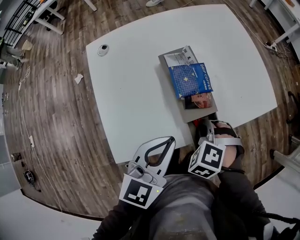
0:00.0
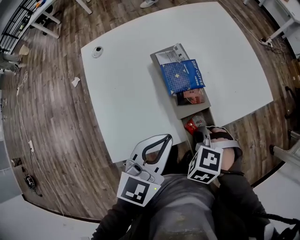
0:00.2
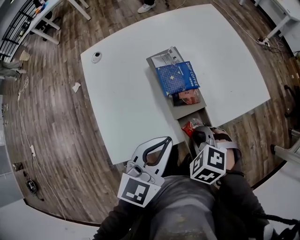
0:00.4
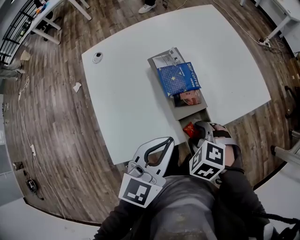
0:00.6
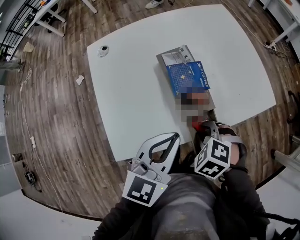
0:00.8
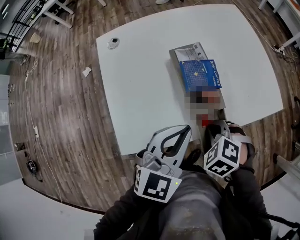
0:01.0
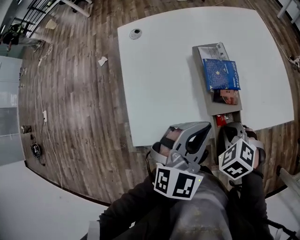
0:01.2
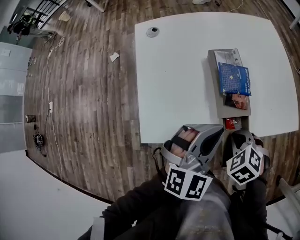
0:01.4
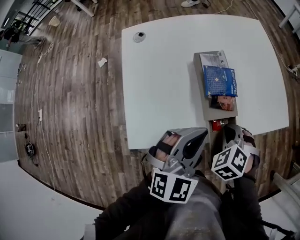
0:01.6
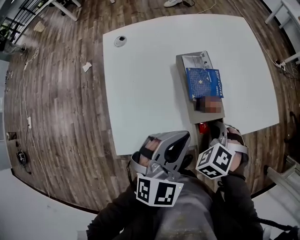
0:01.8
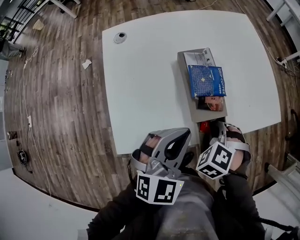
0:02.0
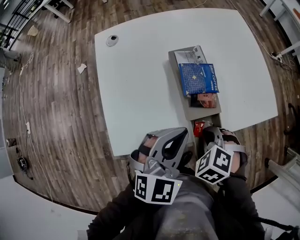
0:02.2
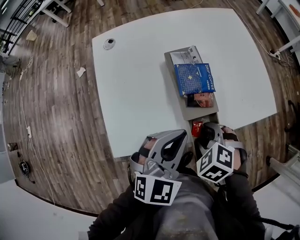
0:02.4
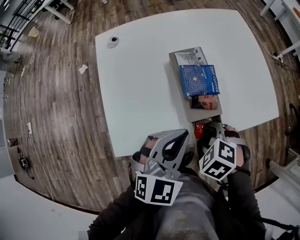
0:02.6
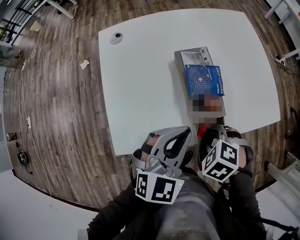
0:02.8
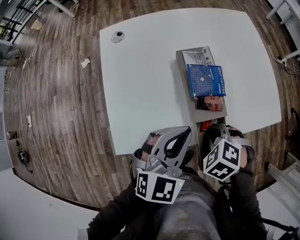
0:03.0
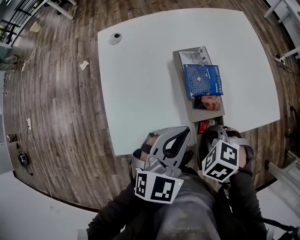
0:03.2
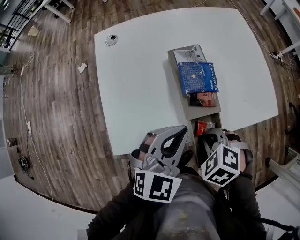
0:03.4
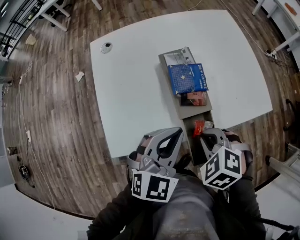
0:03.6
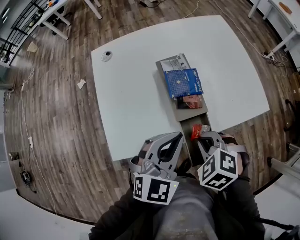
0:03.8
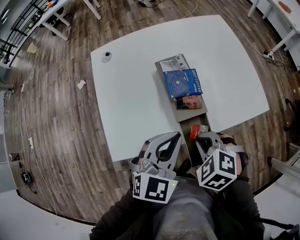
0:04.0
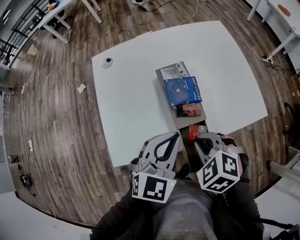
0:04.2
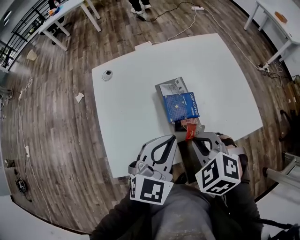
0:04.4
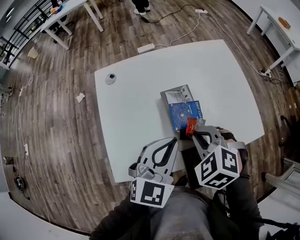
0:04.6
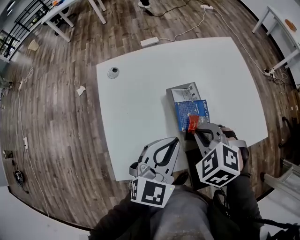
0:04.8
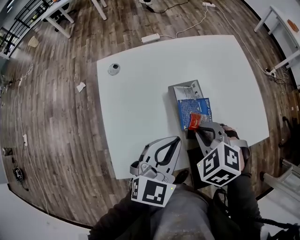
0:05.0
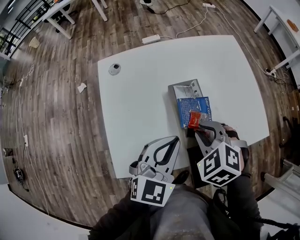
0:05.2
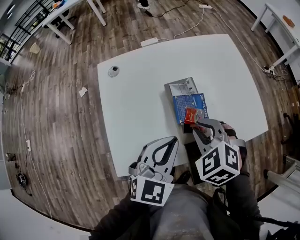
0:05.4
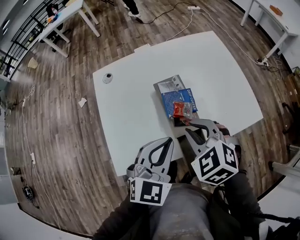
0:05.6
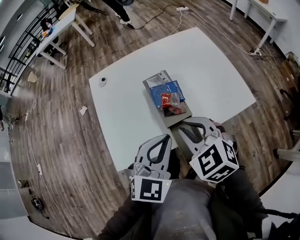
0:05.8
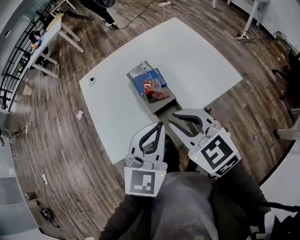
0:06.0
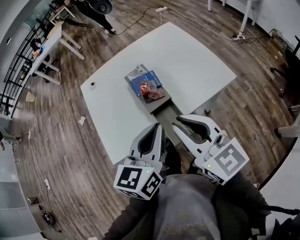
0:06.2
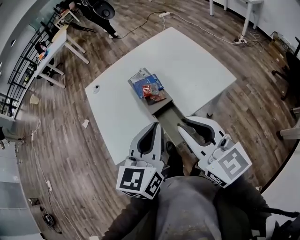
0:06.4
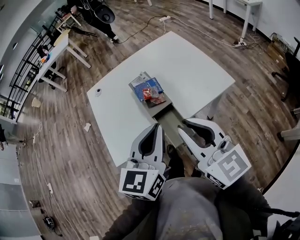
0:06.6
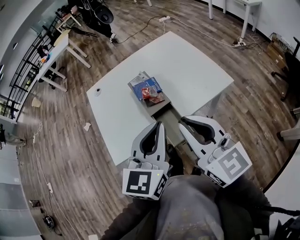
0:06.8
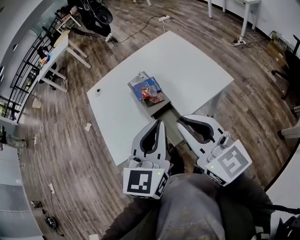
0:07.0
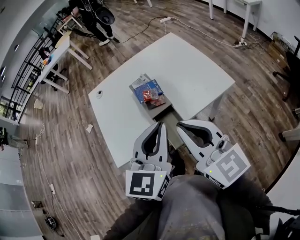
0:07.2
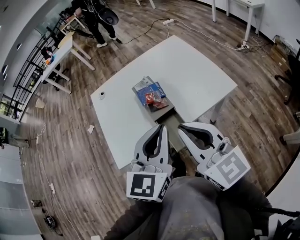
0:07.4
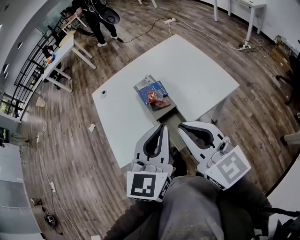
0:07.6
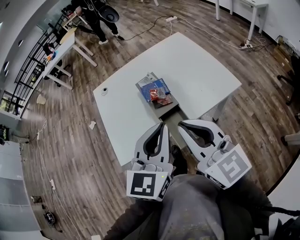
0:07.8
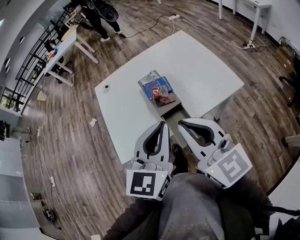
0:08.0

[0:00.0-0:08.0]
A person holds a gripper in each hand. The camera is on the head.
0:00.0 to 0:01.6: The right gripper opens and closes again. The left gripper turns by approximately 30 degrees.
0:01.6 to 0:03.2: The right gripper opens and closes again.
0:03.2 to 0:04.8: The right gripper shifts by roughly 15 cm. The left gripper shifts by approximately 5 cm.
0:04.8 to 0:06.4: The two grippers go some 25 cm backward, upward and to the right. The right gripper tilts its fingers roughly 60 degrees upward; the left gripper changes its angle by approximately 20 degrees.
0:06.4 to 0:08.0: The grippers make only small movements.

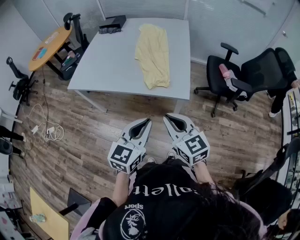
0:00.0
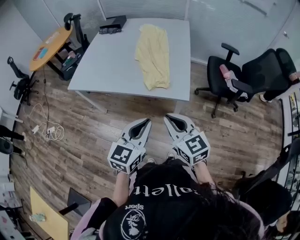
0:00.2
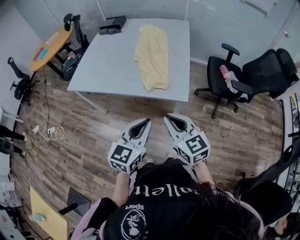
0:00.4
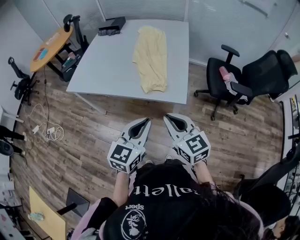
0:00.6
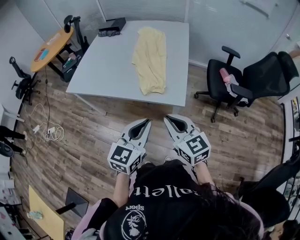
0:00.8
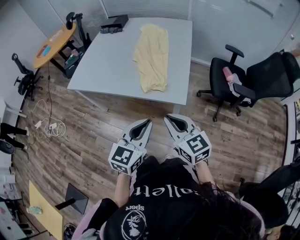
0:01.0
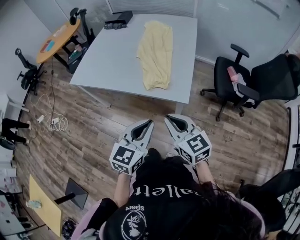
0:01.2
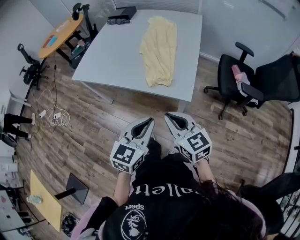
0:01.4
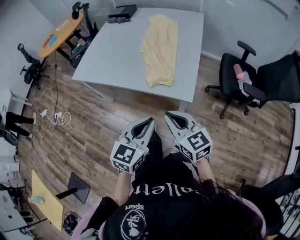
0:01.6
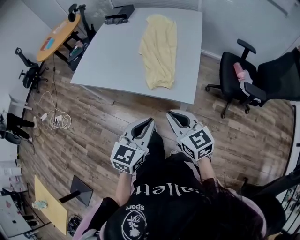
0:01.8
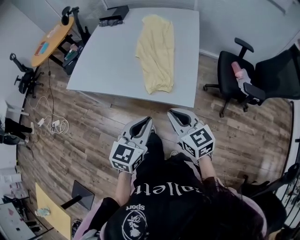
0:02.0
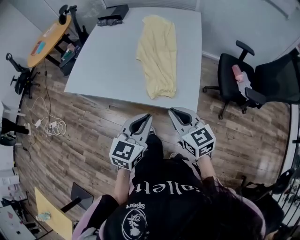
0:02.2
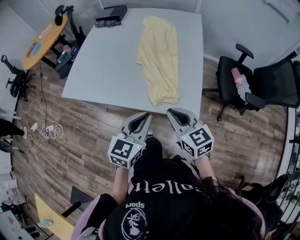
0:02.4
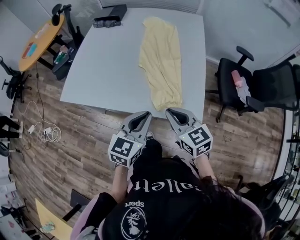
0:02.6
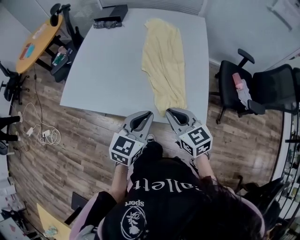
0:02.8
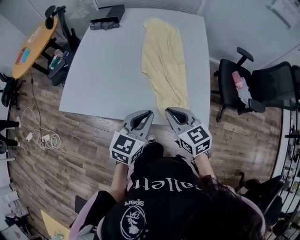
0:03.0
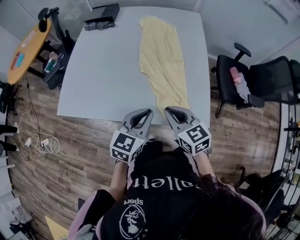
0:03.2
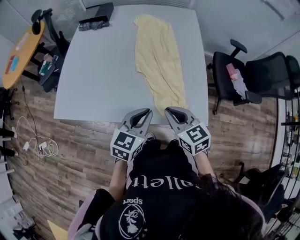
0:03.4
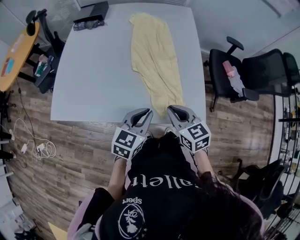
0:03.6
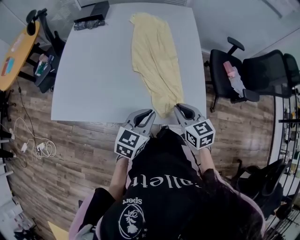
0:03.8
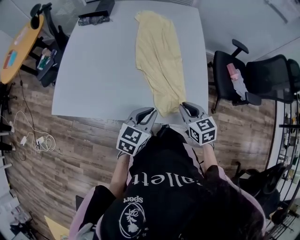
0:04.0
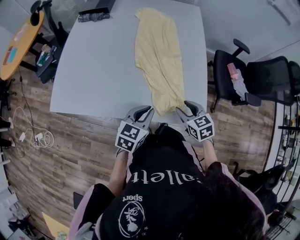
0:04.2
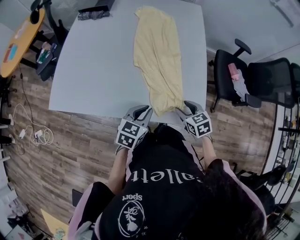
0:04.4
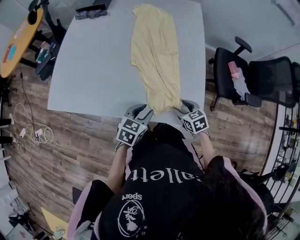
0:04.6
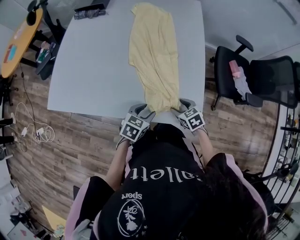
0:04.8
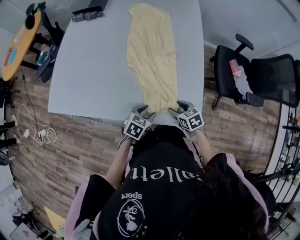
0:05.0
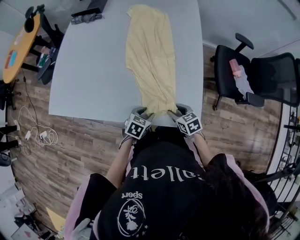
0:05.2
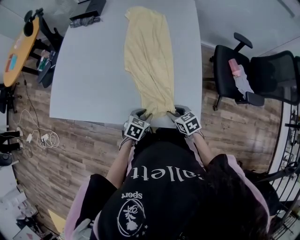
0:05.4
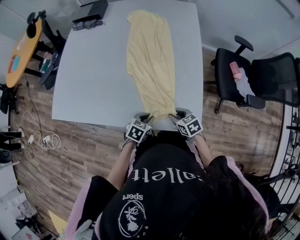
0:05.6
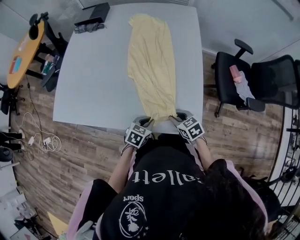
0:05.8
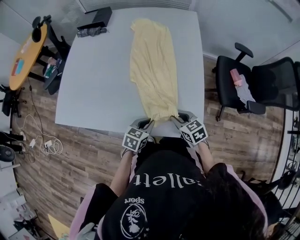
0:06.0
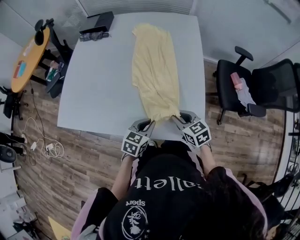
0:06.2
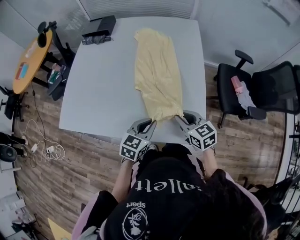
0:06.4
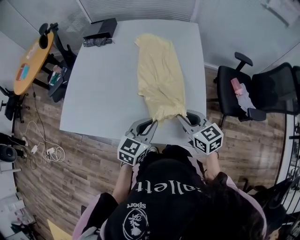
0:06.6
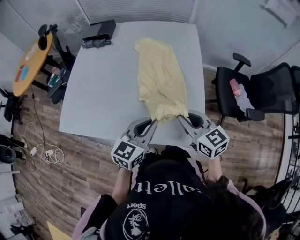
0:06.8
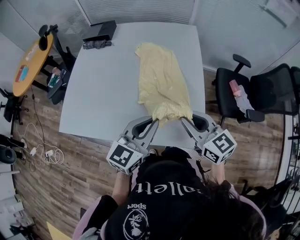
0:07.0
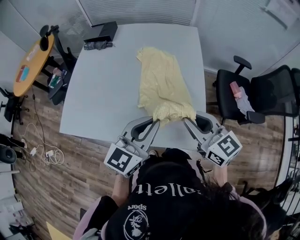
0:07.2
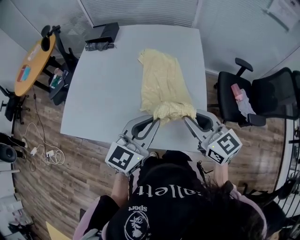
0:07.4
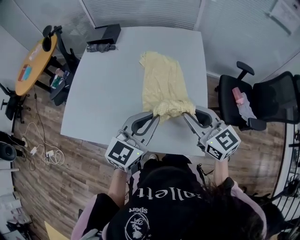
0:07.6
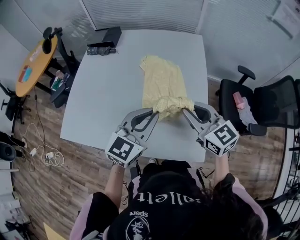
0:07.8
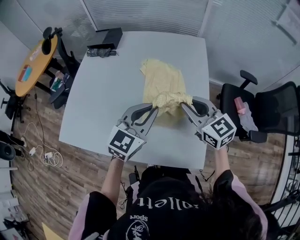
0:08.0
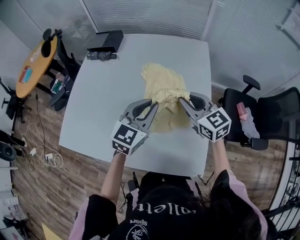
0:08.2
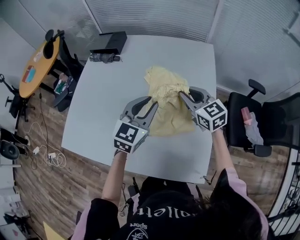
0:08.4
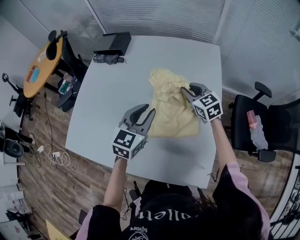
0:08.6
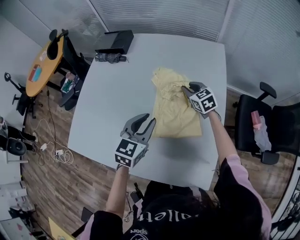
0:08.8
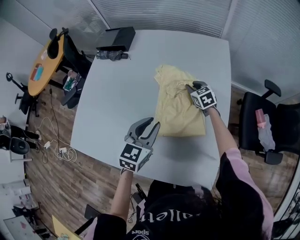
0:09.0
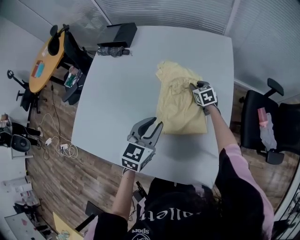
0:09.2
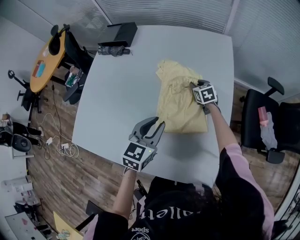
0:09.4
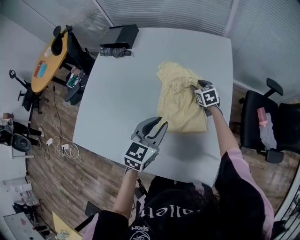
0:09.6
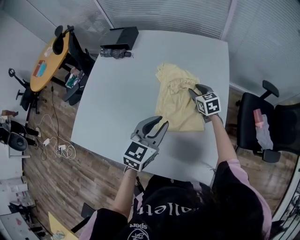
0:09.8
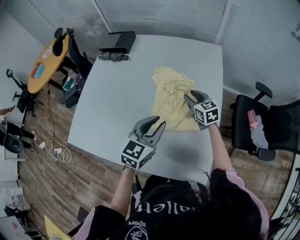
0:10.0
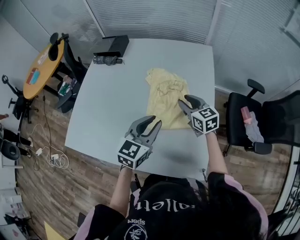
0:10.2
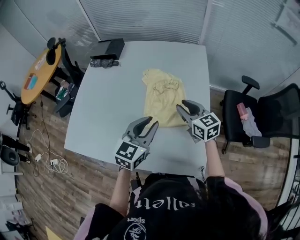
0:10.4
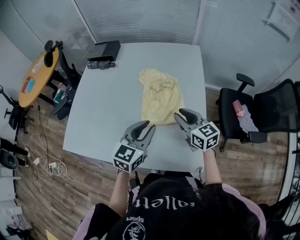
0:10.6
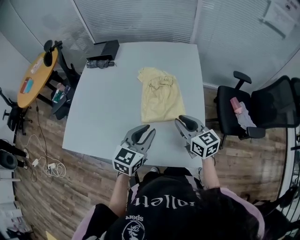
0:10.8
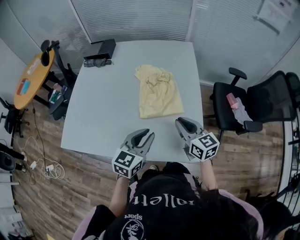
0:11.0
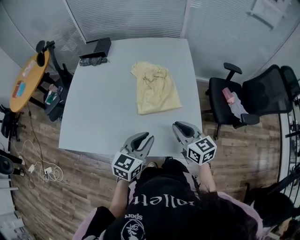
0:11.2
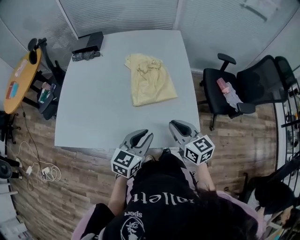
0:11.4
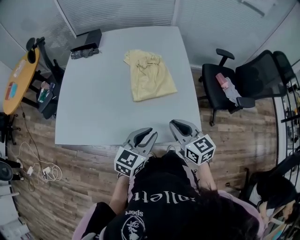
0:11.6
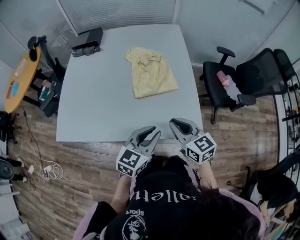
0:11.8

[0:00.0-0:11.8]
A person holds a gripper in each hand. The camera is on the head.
0:00.0 to 0:01.4: The left gripper shifts about 5 cm to the right, while the right gripper moves roughly 5 cm.
0:01.4 to 0:03.0: The grippers both shift forward and to the left by about 25 cm.
0:03.0 to 0:04.4: The right gripper goes approximately 20 cm downward and to the right, swivels about 20 degrees, and opens. The left gripper goes some 10 cm downward.
0:04.4 to 0:06.0: The left gripper travels downward by about 5 cm, and opens, then closes once more, while the right gripper goes downward and returns, some 10 cm each way, and closes.
0:06.0 to 0:07.4: The two grippers go roughly 25 cm upward. The left gripper tilts its fingers roughly 30 degrees upward; the right gripper swivels about 30 degrees.
0:07.4 to 0:08.8: The right gripper is displaced forward and downward by some 40 cm, and rotates roughly 20 degrees. Meanwhile the left gripper travels forward and downward by approximately 25 cm, and changes its angle by some 20 degrees.
0:08.8 to 0:10.4: The right gripper moves backward and upward, roughly 20 cm, and swivels about 20 degrees. The left gripper travels backward by some 10 cm.
0:10.4 to 0:11.8: The two grippers go roughly 25 cm backward. The right gripper closes.

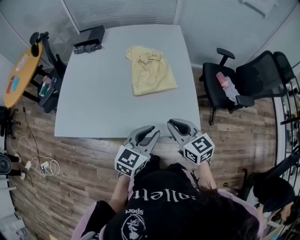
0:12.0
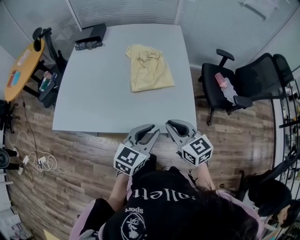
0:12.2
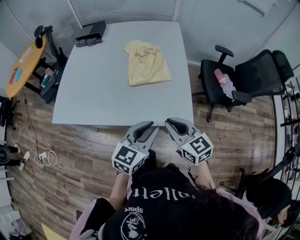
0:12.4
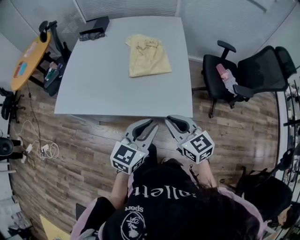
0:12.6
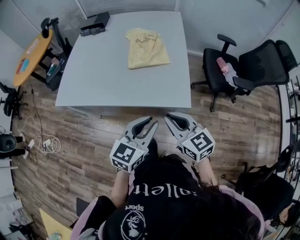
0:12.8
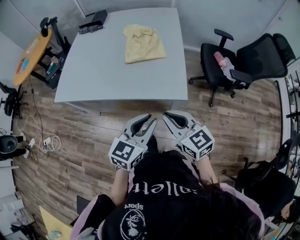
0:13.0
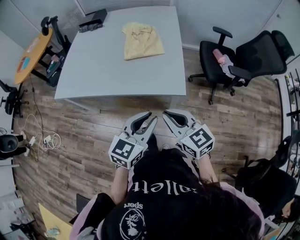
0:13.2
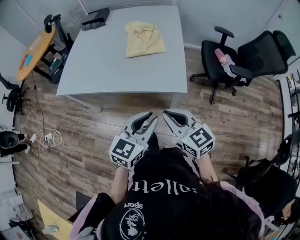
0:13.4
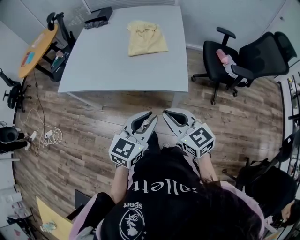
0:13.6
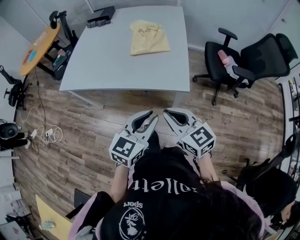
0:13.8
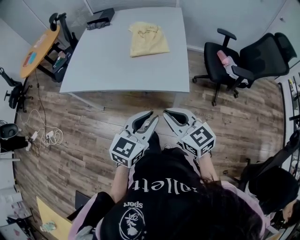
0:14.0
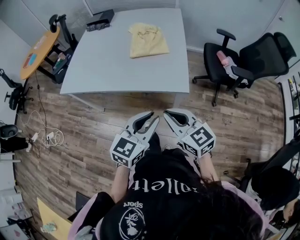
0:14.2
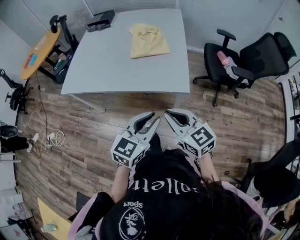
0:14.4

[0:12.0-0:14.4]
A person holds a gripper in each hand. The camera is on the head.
0:12.0 to 0:13.2: The left gripper goes about 20 cm backward and to the right. Meanwhile the right gripper shifts approximately 20 cm backward.
0:13.2 to 0:14.4: The grippers make only small movements.

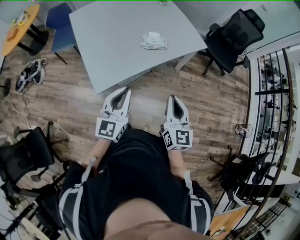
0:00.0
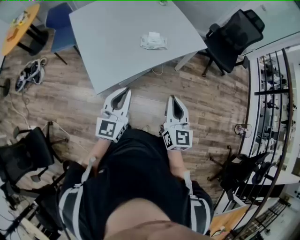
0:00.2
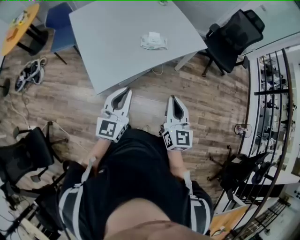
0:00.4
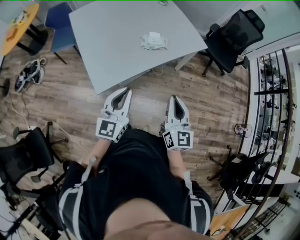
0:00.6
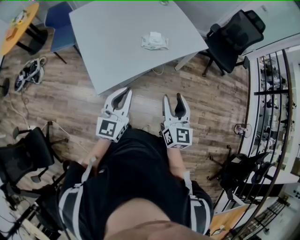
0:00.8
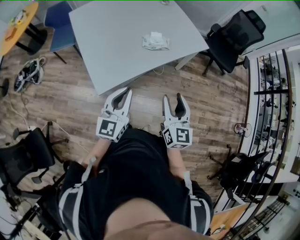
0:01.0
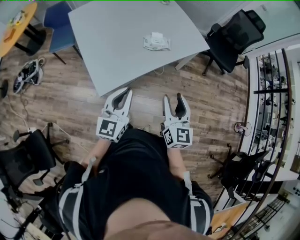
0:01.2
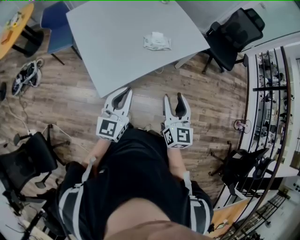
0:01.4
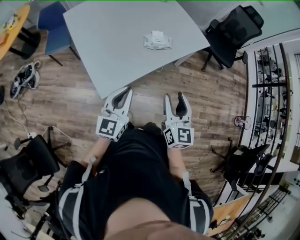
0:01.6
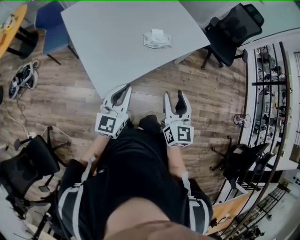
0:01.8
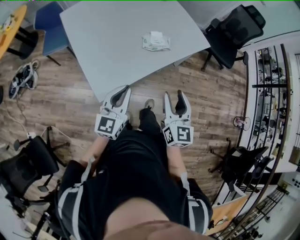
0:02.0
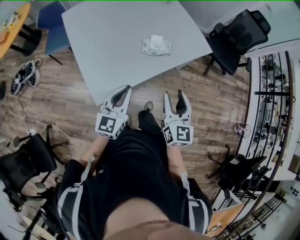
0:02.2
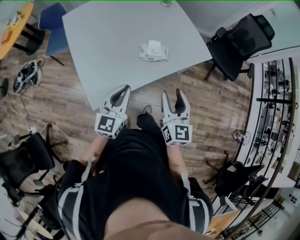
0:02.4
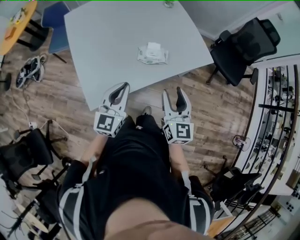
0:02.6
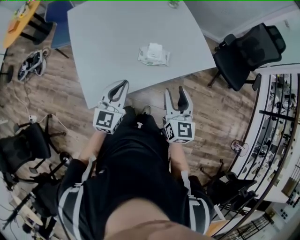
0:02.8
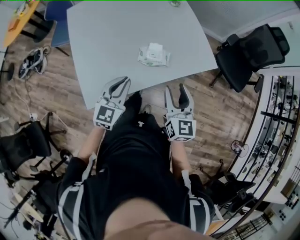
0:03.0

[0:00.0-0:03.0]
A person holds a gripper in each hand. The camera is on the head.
0:00.0 to 0:01.6: The two grippers go about 10 cm to the left. The right gripper opens its fingers.
0:01.6 to 0:03.0: The left gripper goes roughly 25 cm forward and to the right. Meanwhile the right gripper shifts some 25 cm forward.
